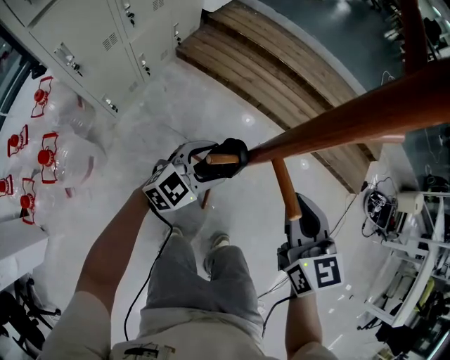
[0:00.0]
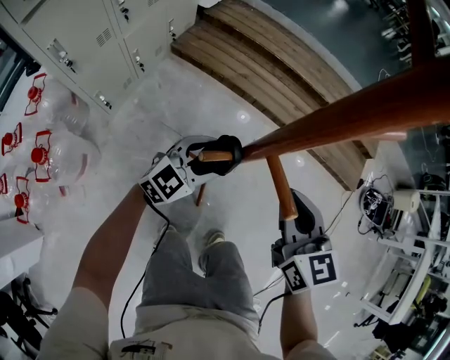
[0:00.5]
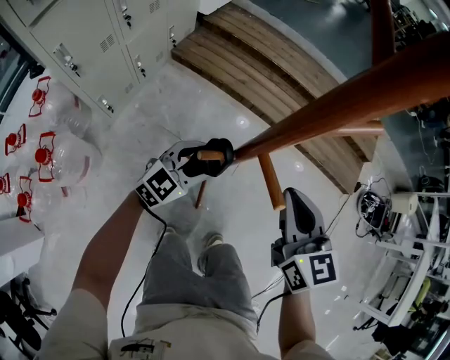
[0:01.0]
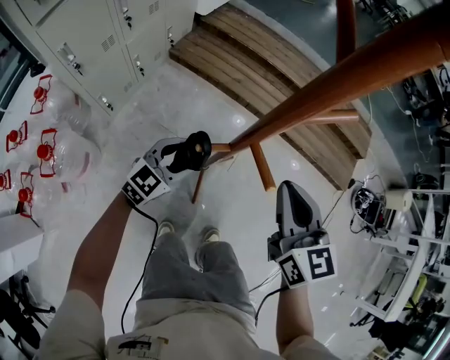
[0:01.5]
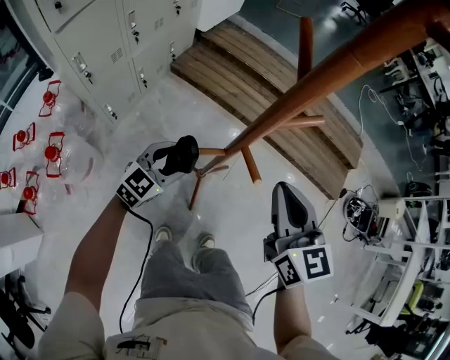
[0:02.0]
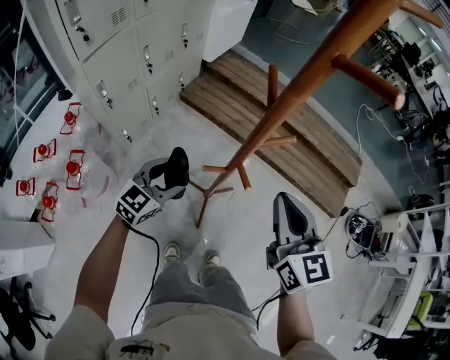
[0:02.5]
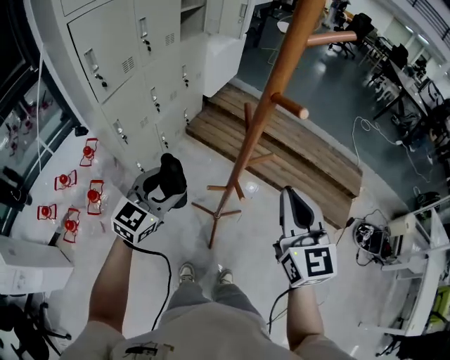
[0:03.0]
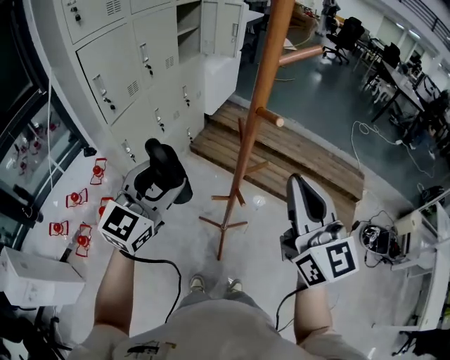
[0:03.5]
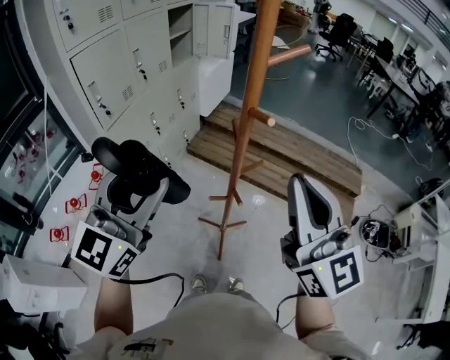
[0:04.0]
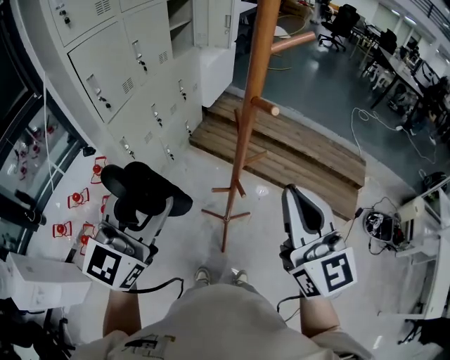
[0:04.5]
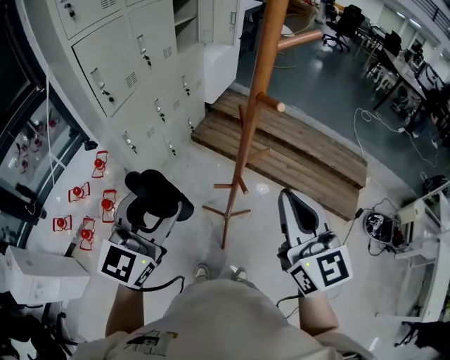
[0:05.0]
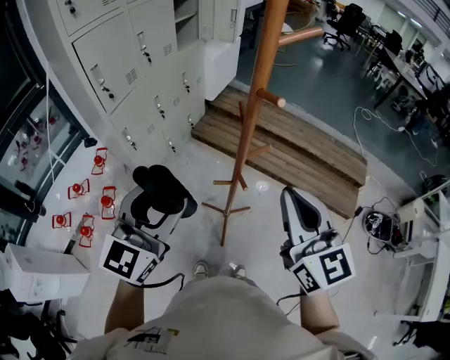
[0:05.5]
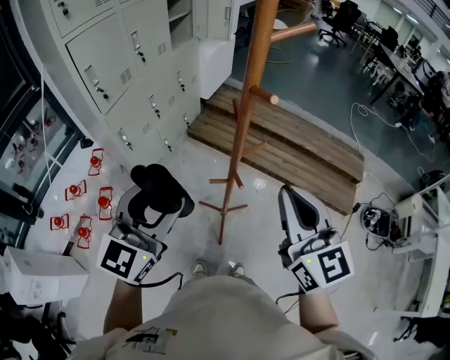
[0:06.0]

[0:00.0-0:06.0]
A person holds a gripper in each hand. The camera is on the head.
0:00.0 to 0:02.0: The left gripper is displaced upward and to the left by approximately 10 cm; the right gripper travels upward by approximately 15 cm.
0:02.0 to 0:04.0: Both grippers travel together upward, approximately 50 cm. The right gripper swivels about 30 degrees. Meanwhile the left gripper turns by roughly 40 degrees.
0:04.0 to 0:06.0: Both grippers move downward, roughly 10 cm.

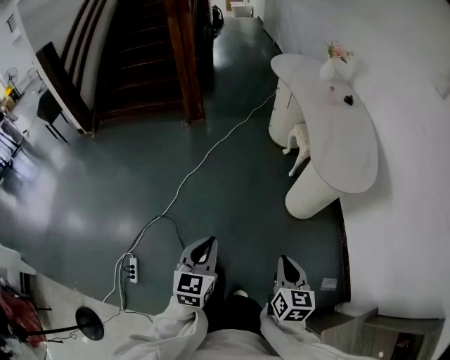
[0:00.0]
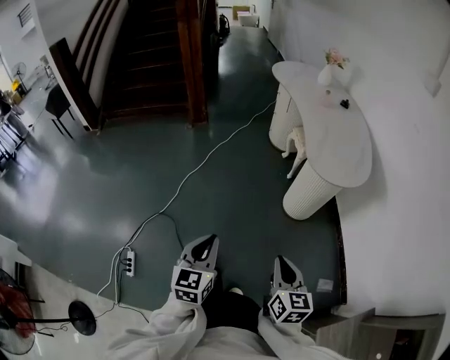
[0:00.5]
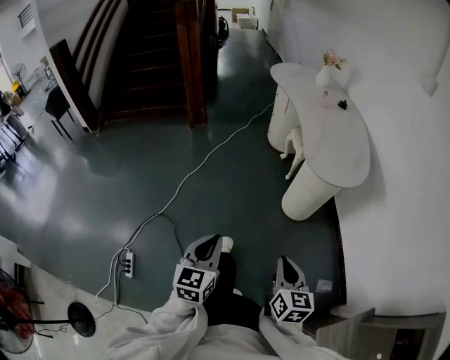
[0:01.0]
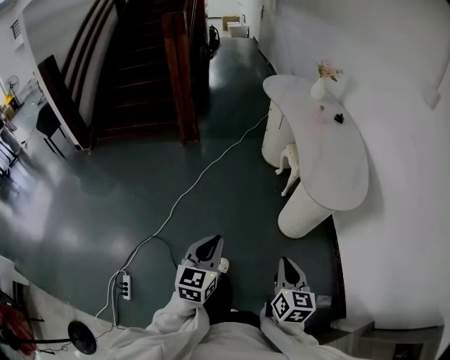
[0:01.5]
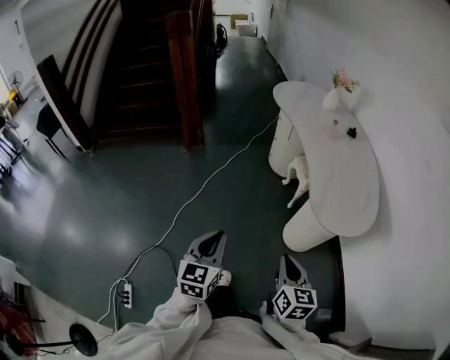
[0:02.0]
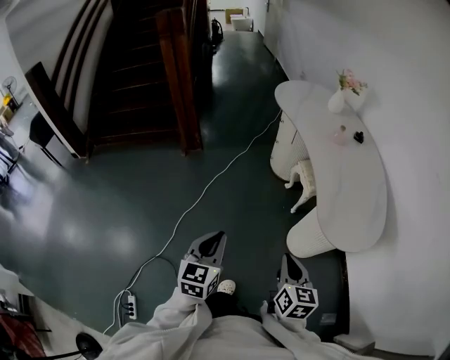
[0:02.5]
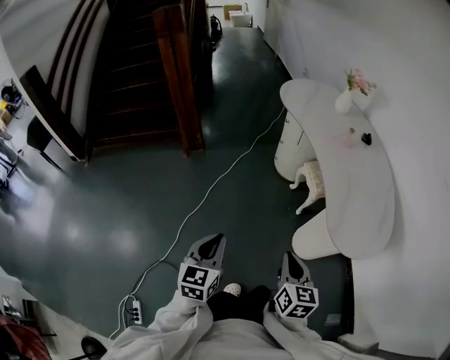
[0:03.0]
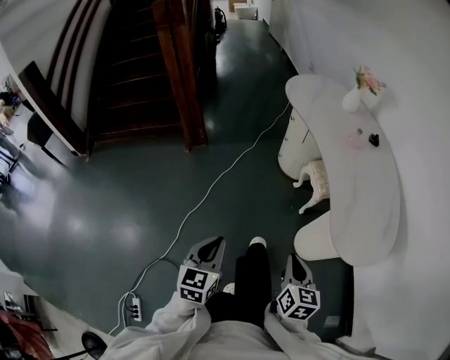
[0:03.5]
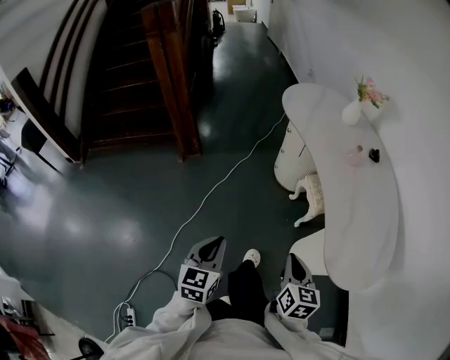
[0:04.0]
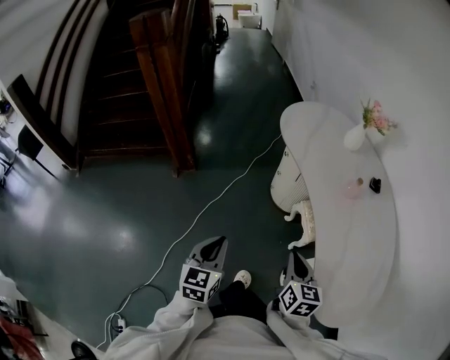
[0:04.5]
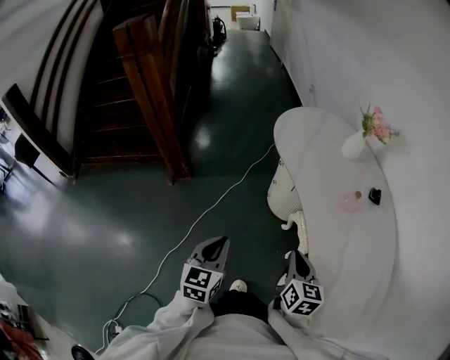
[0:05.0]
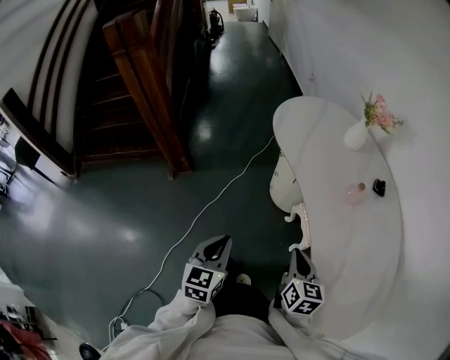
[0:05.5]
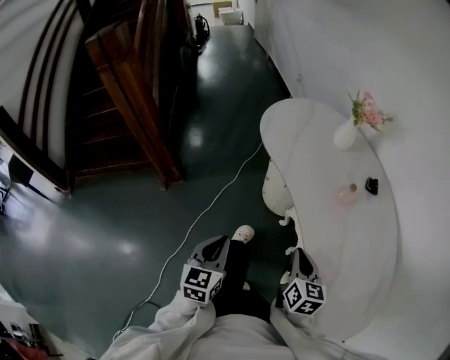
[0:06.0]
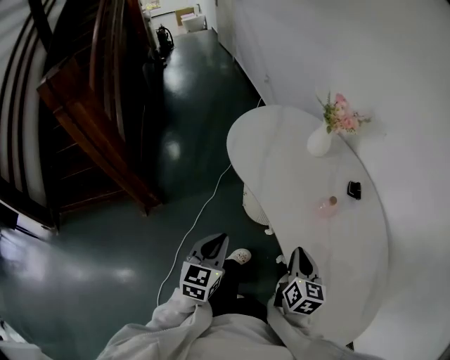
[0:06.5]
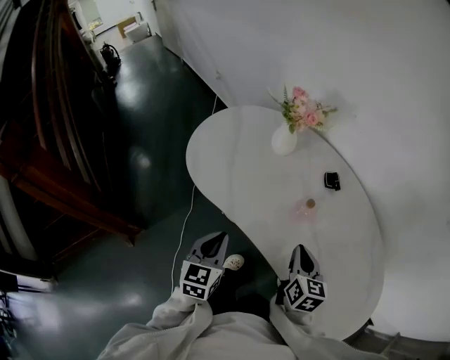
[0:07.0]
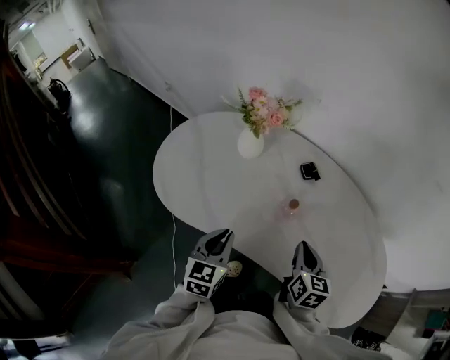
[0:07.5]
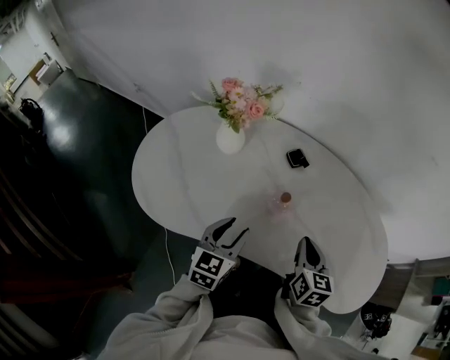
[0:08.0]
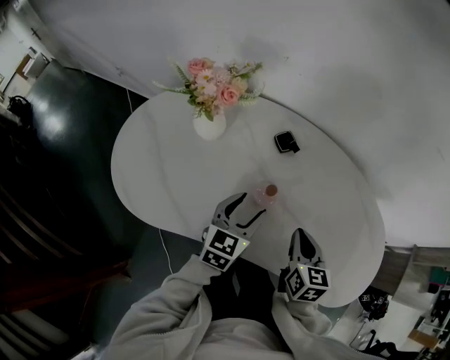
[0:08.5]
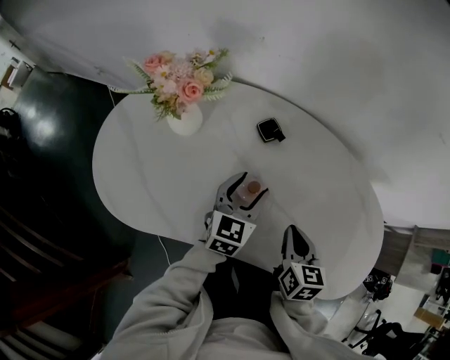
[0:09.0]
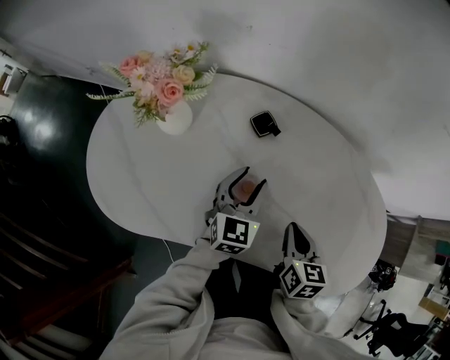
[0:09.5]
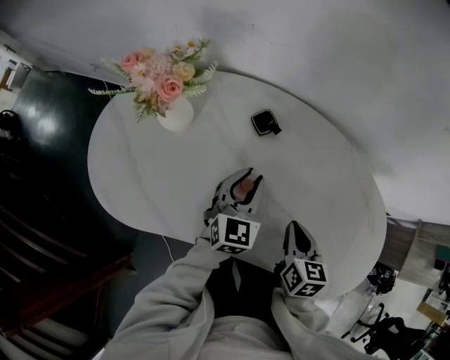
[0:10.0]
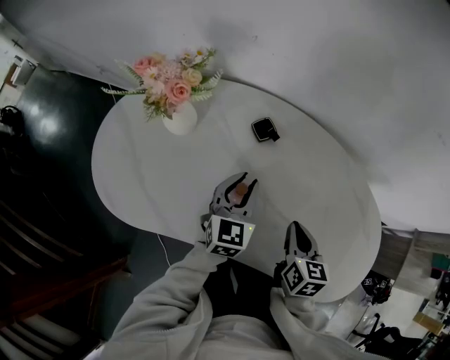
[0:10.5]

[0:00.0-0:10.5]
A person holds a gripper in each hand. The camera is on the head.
0:00.0 to 0:02.0: The two grippers go roughly 15 cm forward.
0:02.0 to 0:04.0: Both grippers move forward, some 25 cm.
0:04.0 to 0:06.5: Both grippers move forward, about 35 cm.
0:06.5 to 0:08.5: The left gripper moves about 35 cm, swivels roughly 60 degrees, and opens up; the right gripper changes place by about 15 cm, and changes its angle by roughly 40 degrees.
0:08.5 to 0:10.5: The left gripper heads forward, covering roughly 5 cm, and closes. Meanwhile the right gripper moves roughly 5 cm.

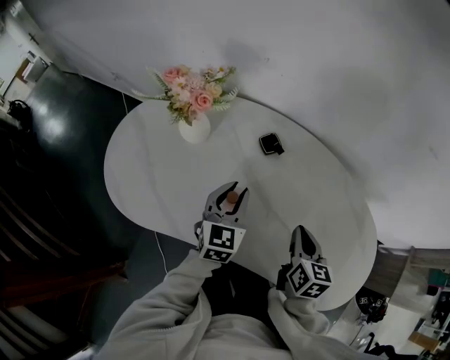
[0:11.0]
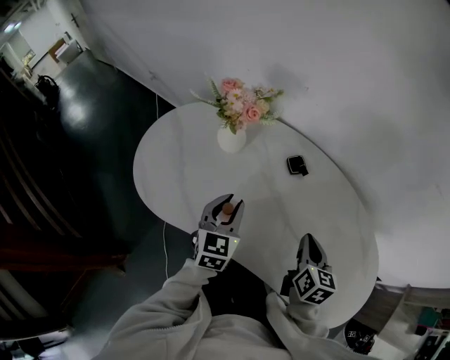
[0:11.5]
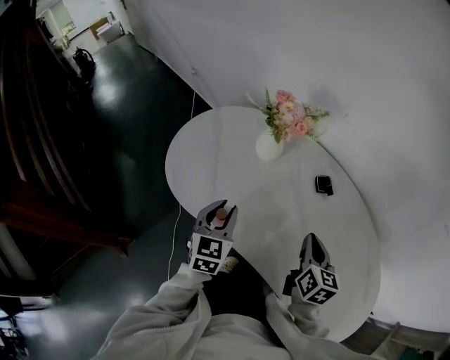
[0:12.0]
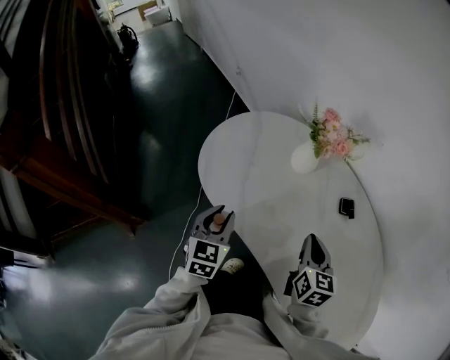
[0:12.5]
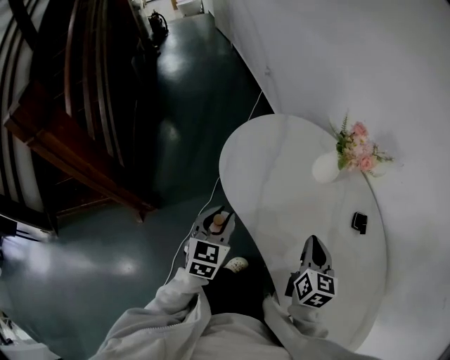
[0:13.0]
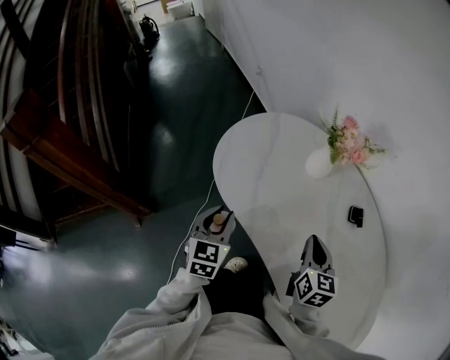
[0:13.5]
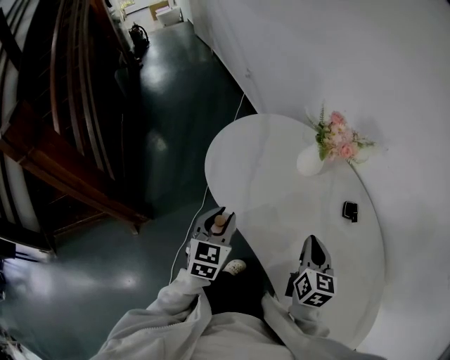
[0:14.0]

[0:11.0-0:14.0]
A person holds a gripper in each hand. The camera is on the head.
0:11.0 to 0:12.5: The right gripper moves roughly 20 cm, and changes its angle by roughly 30 degrees. Meanwhile the left gripper moves approximately 30 cm, and changes its angle by about 40 degrees.
0:12.5 to 0:14.0: There are only small adjustments of the grippers.

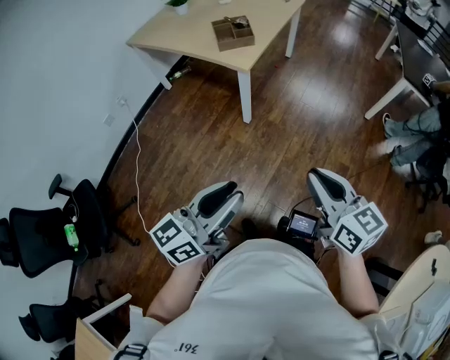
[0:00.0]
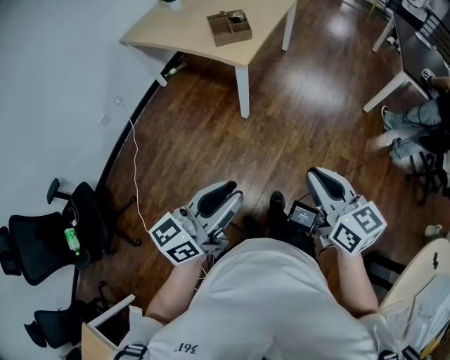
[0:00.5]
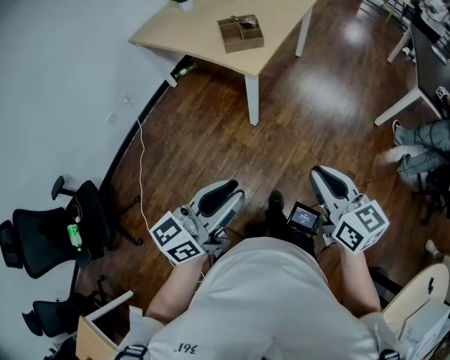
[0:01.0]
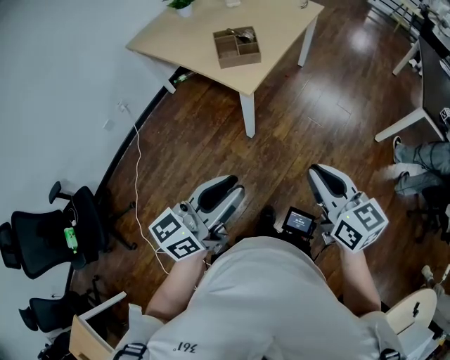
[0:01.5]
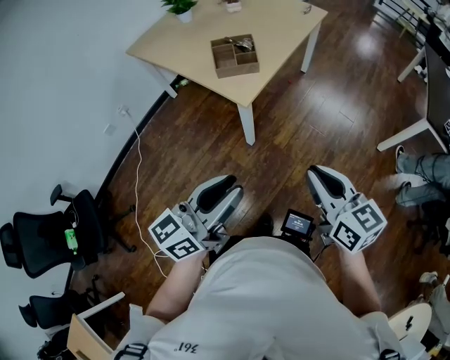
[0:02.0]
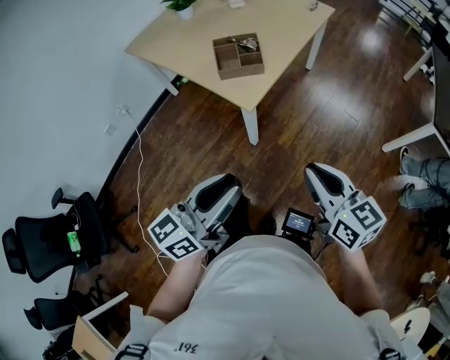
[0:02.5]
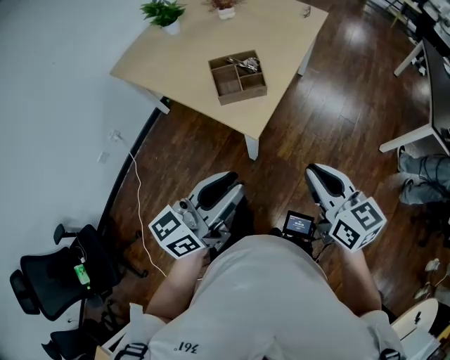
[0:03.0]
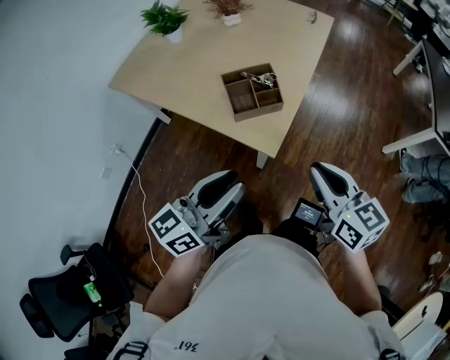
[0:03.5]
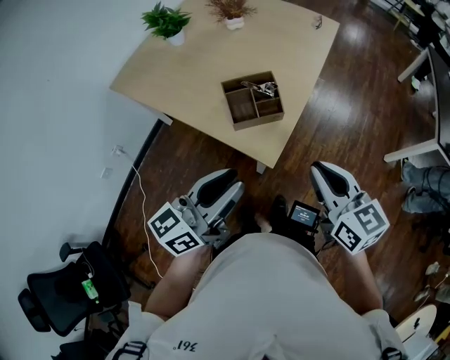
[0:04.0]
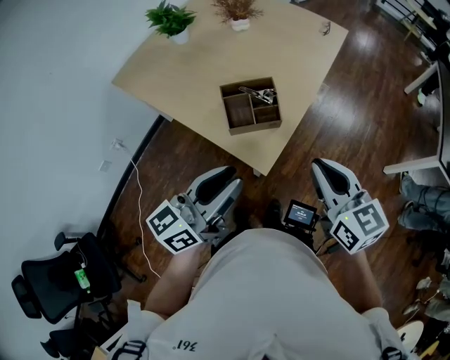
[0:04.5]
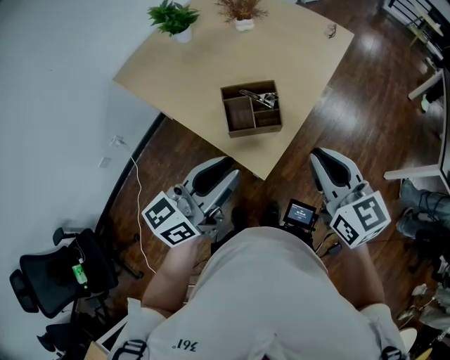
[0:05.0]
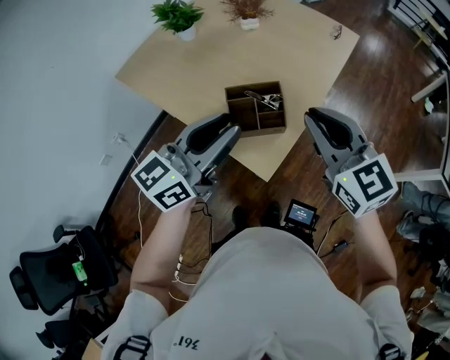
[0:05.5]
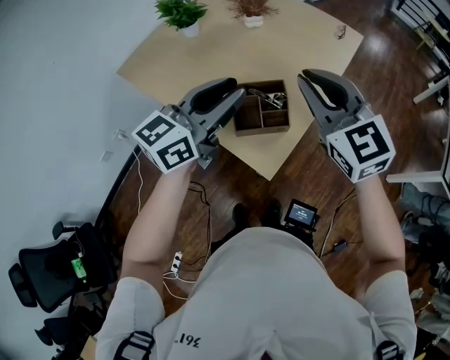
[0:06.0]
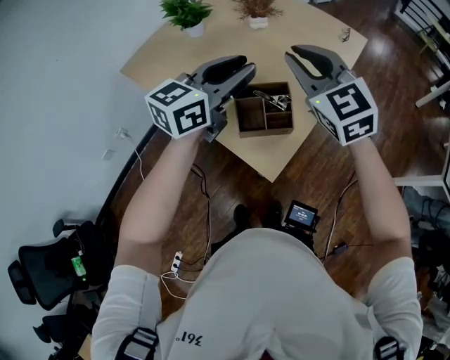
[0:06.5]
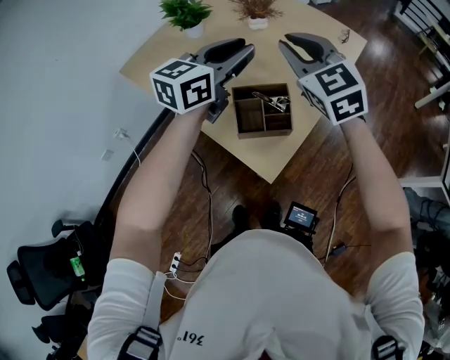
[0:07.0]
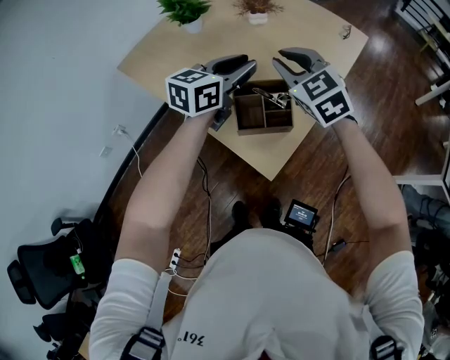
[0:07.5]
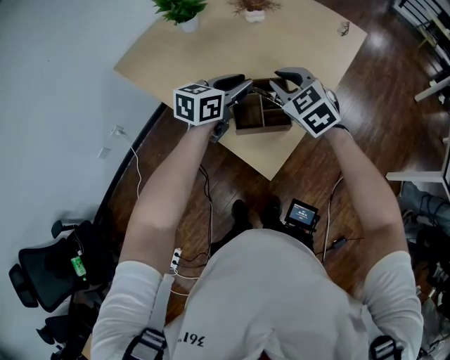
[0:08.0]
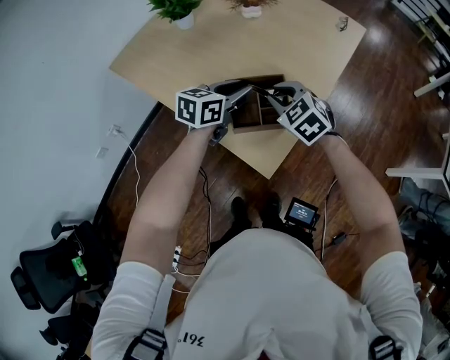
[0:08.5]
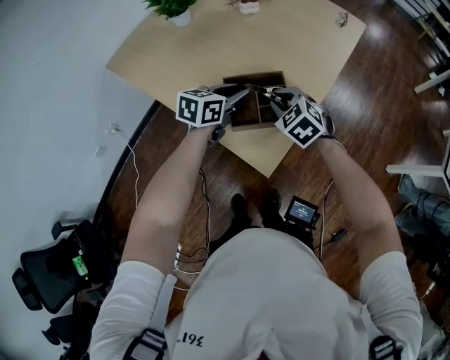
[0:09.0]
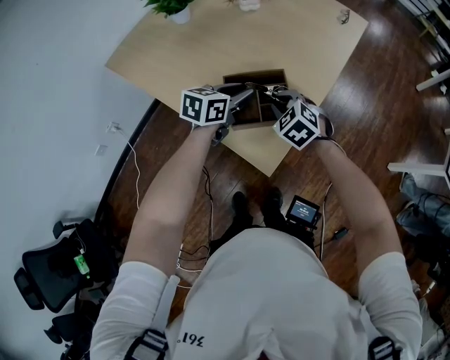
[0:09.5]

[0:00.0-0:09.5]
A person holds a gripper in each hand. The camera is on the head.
0:00.0 to 0:02.0: Both grippers travel together forward, roughly 25 cm.
0:02.0 to 0:04.0: Both grippers travel together forward and to the left, some 30 cm.
0:04.0 to 0:05.5: The left gripper is displaced forward by about 15 cm. The right gripper is displaced forward and upward by some 15 cm, and swivels approximately 30 degrees.
0:05.5 to 0:07.5: The right gripper goes approximately 15 cm forward and to the left, and swivels roughly 20 degrees, while the left gripper travels forward by about 15 cm.
0:07.5 to 0:09.5: Both grippers move downward, about 20 cm. The right gripper rotates about 30 degrees. Meanwhile the left gripper swivels about 20 degrees.
